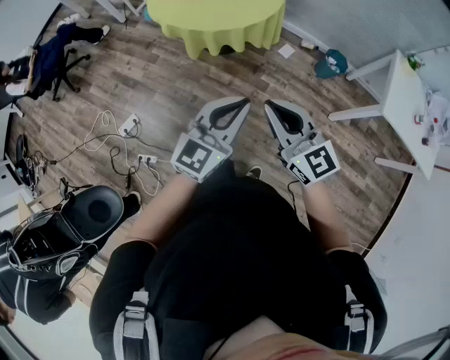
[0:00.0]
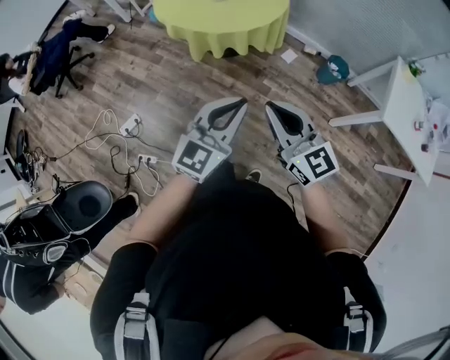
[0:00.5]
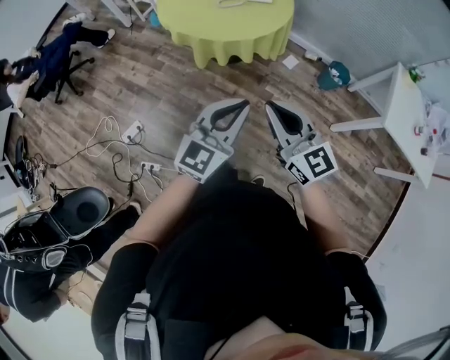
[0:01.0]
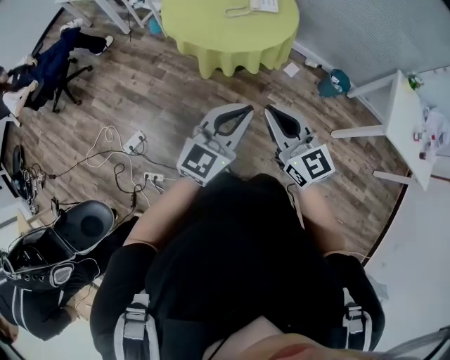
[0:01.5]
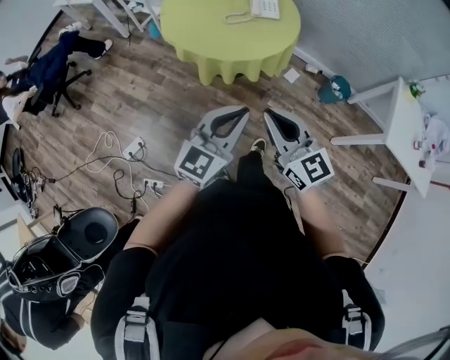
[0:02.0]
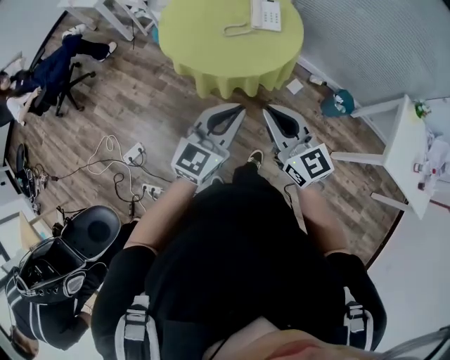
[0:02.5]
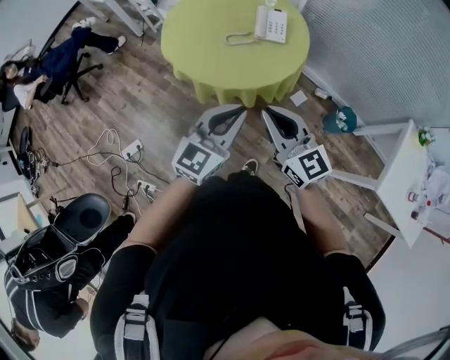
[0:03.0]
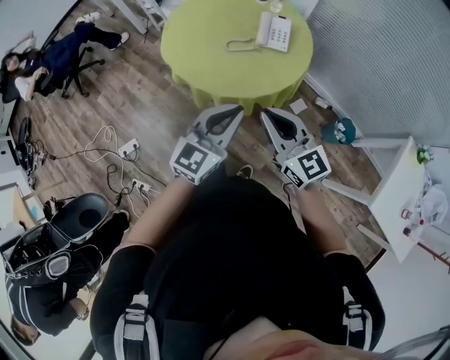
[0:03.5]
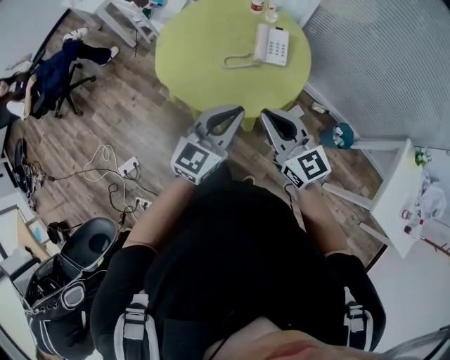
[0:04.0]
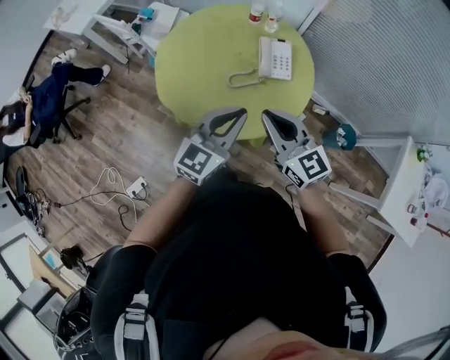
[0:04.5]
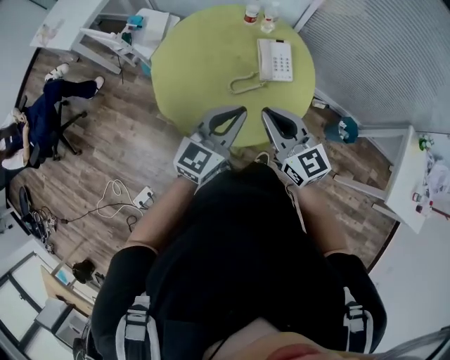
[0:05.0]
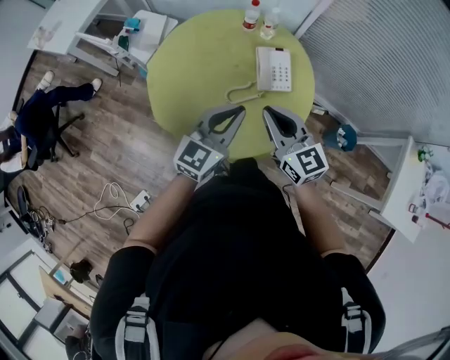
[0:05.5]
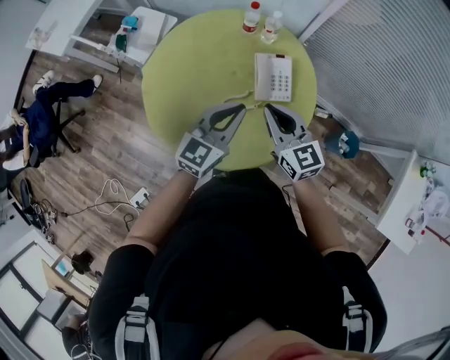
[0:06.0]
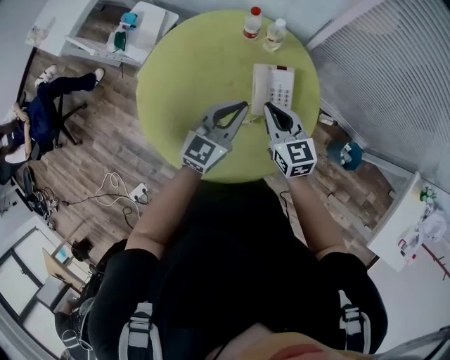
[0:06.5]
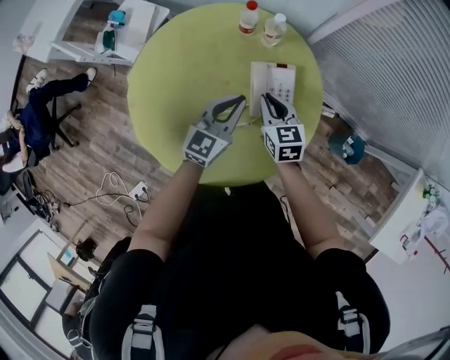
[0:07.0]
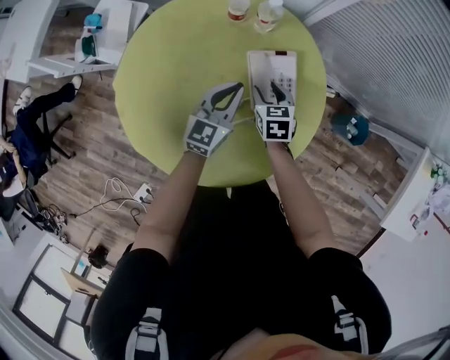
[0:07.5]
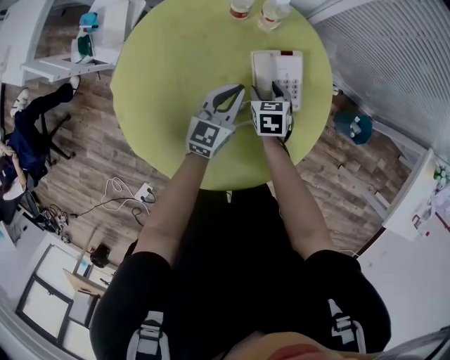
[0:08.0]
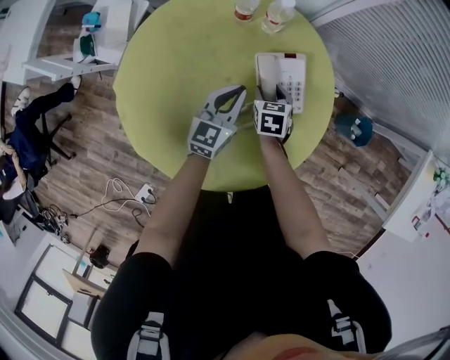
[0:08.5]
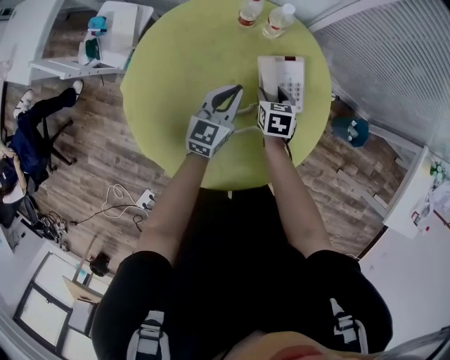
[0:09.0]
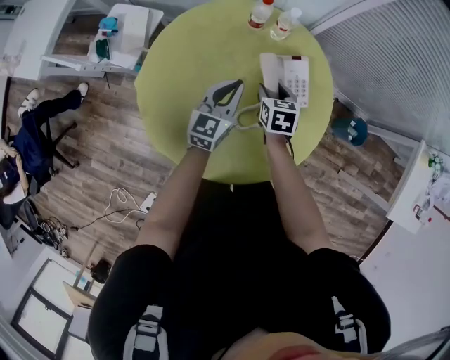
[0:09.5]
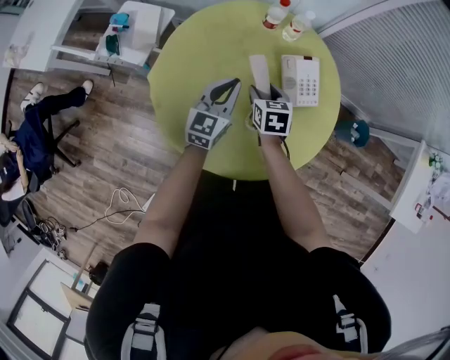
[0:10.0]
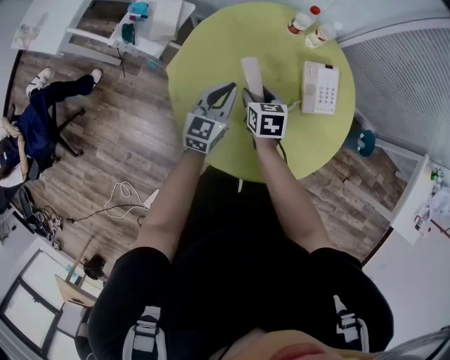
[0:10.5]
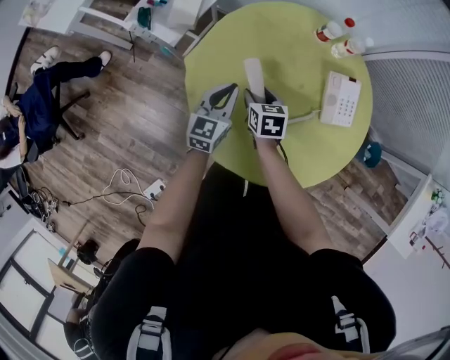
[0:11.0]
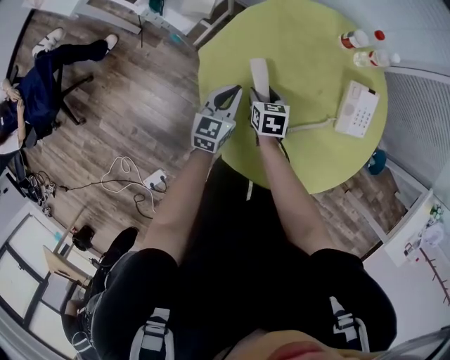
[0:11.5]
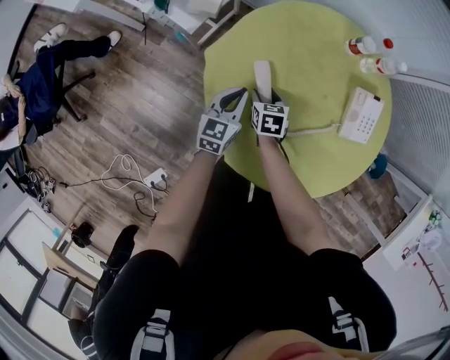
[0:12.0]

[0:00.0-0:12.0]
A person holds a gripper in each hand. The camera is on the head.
0:00.0 to 0:02.0: Both grippers move to the left and forward, about 15 cm.
0:02.0 to 0:04.0: Both grippers move forward, approximately 30 cm.
0:04.0 to 0:06.0: The two grippers go some 30 cm forward.
0:06.0 to 0:08.0: The two grippers go approximately 30 cm downward and forward. The right gripper tilts its fingers about 40 degrees downward, and opens its fingers.
0:08.0 to 0:10.0: The grippers both shift to the left, upward and backward by about 20 cm.
0:10.0 to 0:12.0: The grippers both shift to the left and downward by approximately 25 cm.

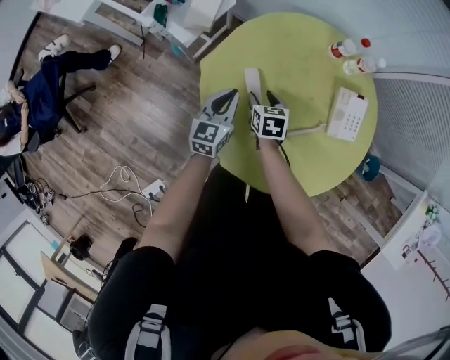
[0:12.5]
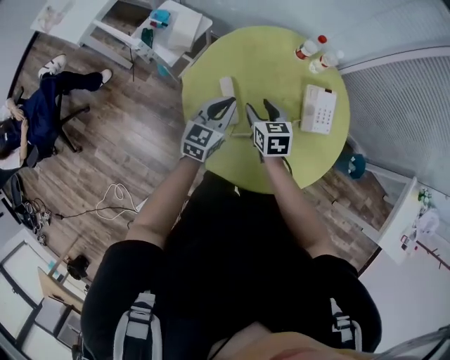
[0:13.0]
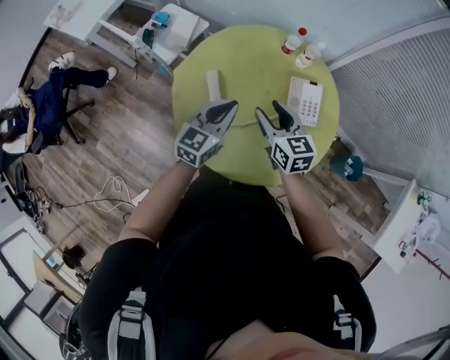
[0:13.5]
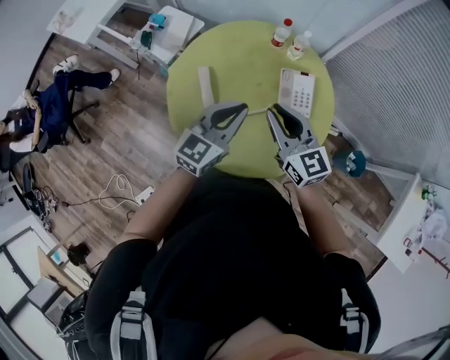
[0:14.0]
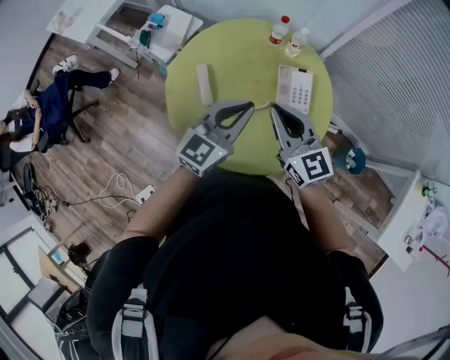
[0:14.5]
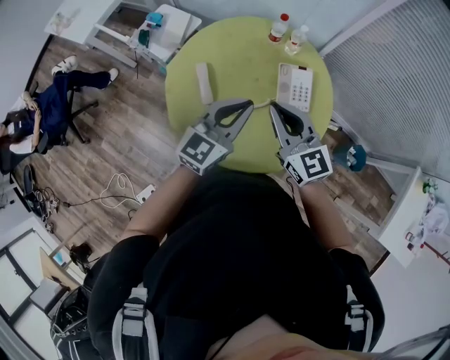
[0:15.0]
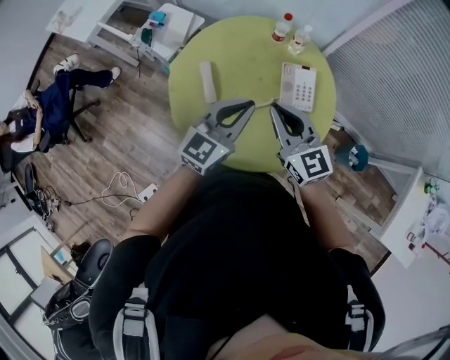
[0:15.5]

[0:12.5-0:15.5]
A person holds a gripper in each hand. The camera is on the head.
0:12.5 to 0:14.0: The right gripper is displaced upward and to the right by some 40 cm, points its fingers some 40 degrees further upward, and closes. Meanwhile the left gripper goes about 35 cm upward, to the right and backward, and turns by some 20 degrees.
0:14.0 to 0:15.5: The grippers stay close to where they were, moving slightly.

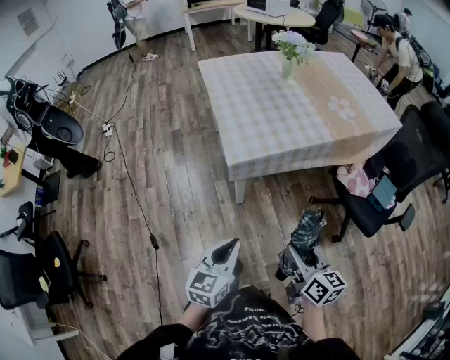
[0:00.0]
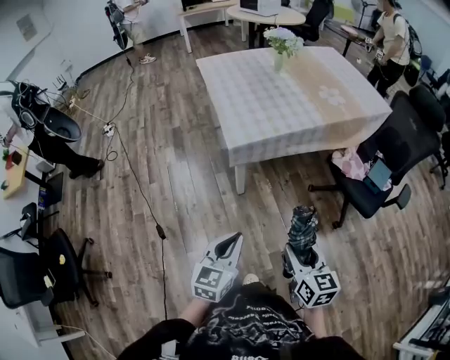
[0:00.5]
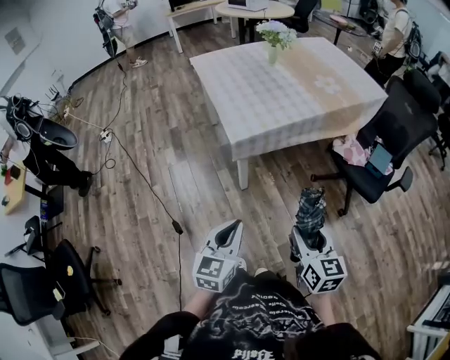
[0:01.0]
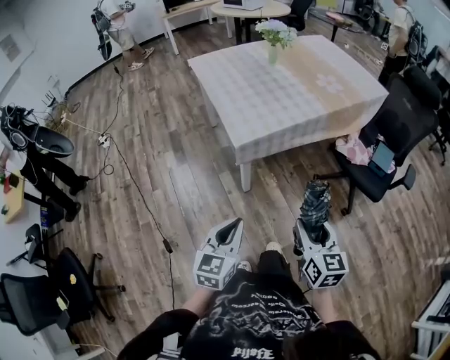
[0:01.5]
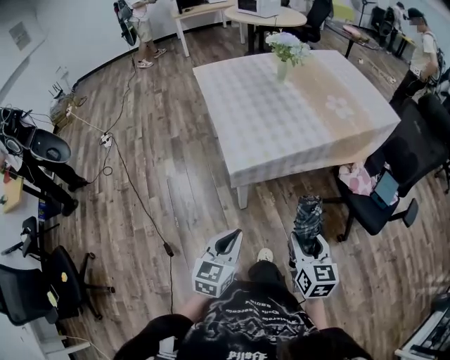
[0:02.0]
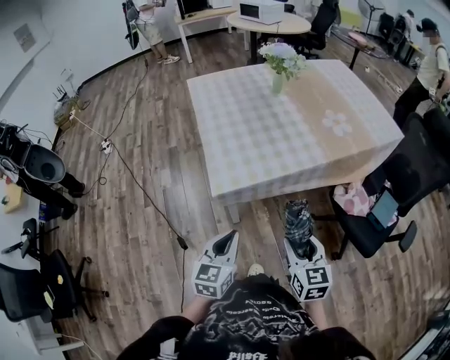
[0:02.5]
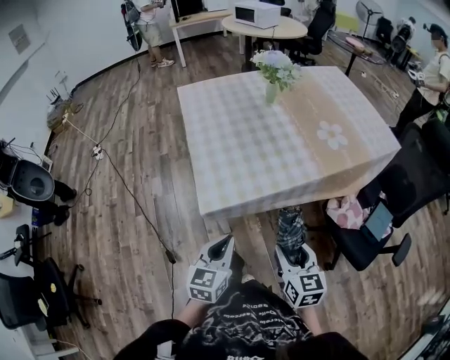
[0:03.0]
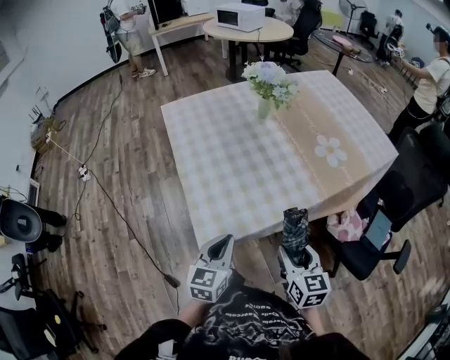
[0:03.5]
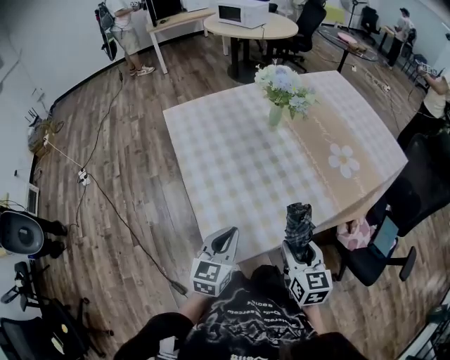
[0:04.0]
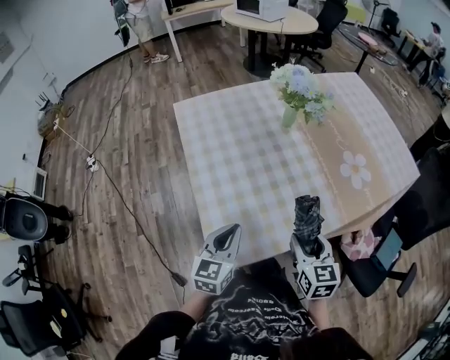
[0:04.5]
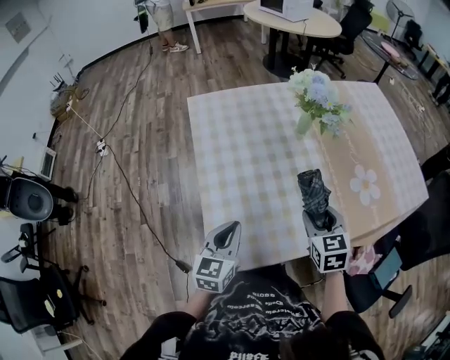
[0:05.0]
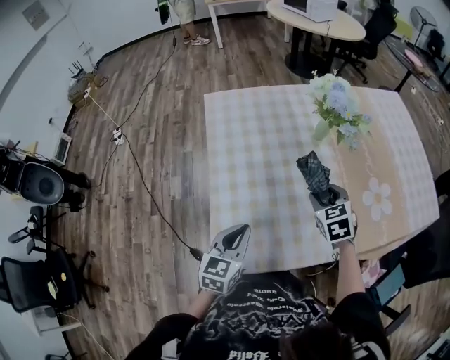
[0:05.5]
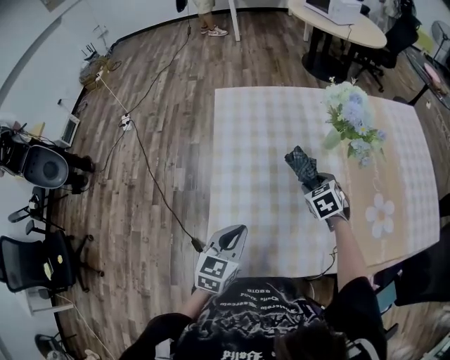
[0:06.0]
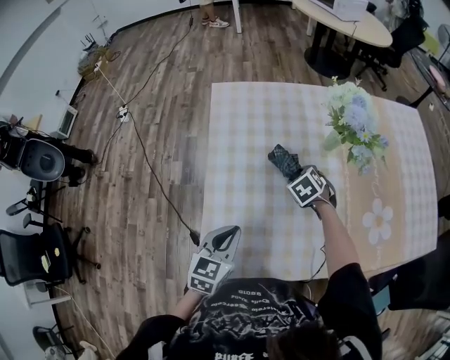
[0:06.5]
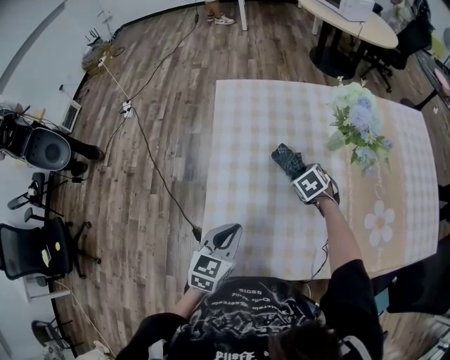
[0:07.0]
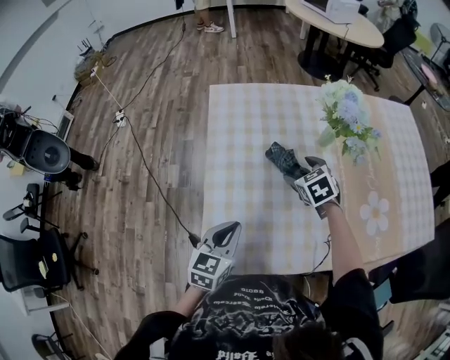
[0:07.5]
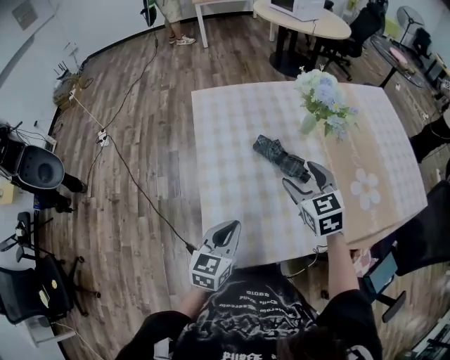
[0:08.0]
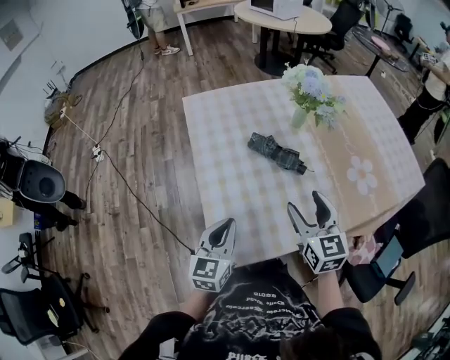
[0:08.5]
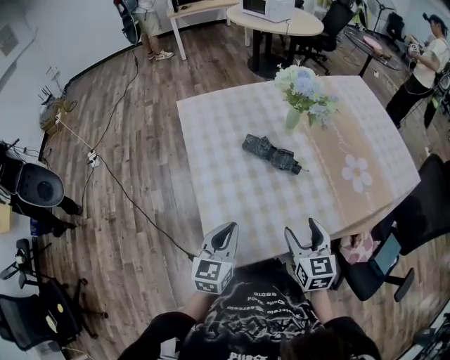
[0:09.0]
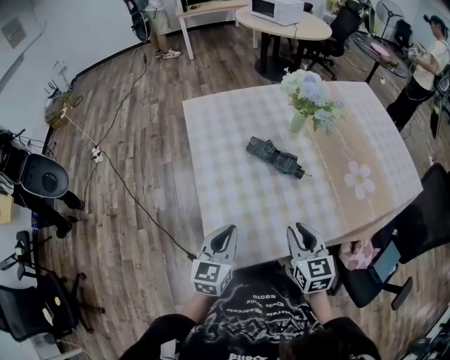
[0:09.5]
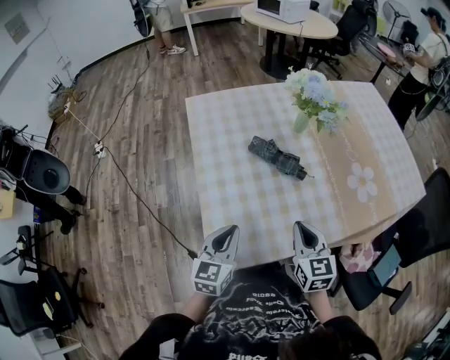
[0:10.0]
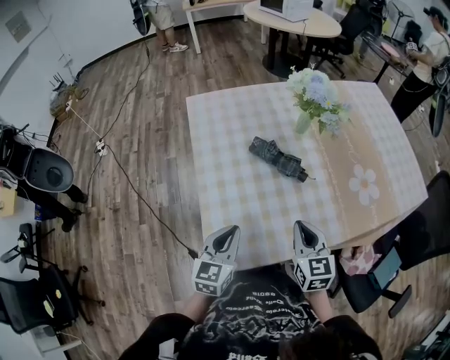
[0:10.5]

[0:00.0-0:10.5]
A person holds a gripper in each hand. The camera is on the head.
0:00.0 to 0:02.0: The two grippers go approximately 5 cm forward. The right gripper changes its angle by about 30 degrees.
0:02.0 to 0:04.0: The two grippers go about 30 cm forward.
0:04.0 to 0:06.5: The right gripper travels forward by about 40 cm, and angles its fingers downward, by about 40 degrees; the left gripper travels forward by roughly 15 cm, and changes its angle by about 20 degrees.
0:06.5 to 0:08.5: The left gripper is displaced backward and to the left by roughly 10 cm, while the right gripper shifts roughly 30 cm backward and upward, and tips its fingers upward by approximately 50 degrees.
0:08.5 to 0:10.5: The right gripper heads downward, covering about 5 cm, and closes its fingers.

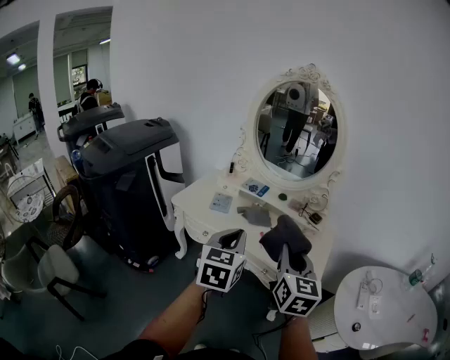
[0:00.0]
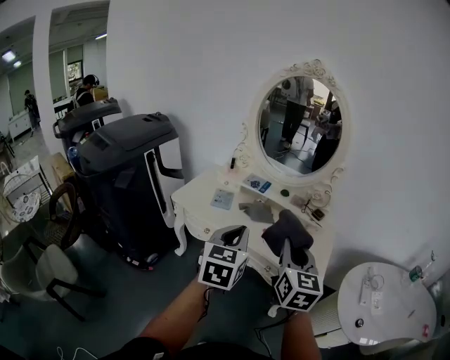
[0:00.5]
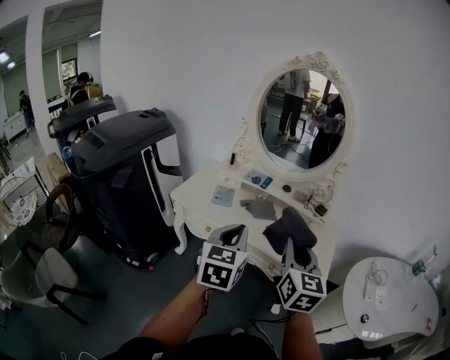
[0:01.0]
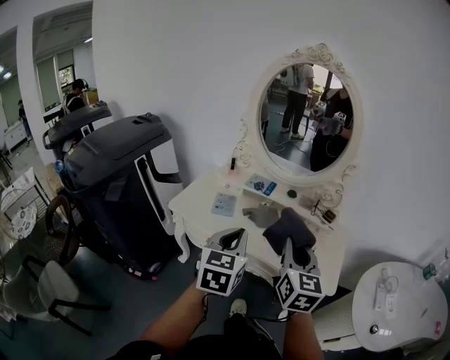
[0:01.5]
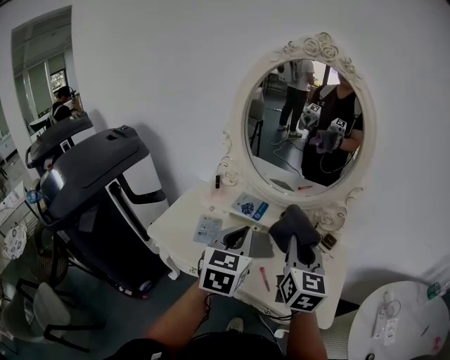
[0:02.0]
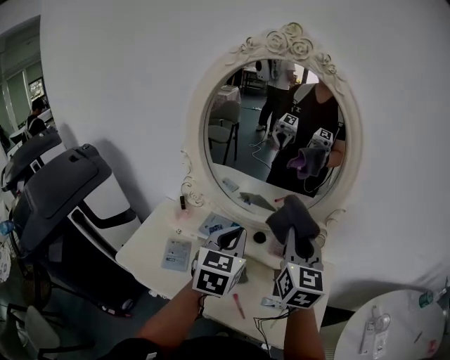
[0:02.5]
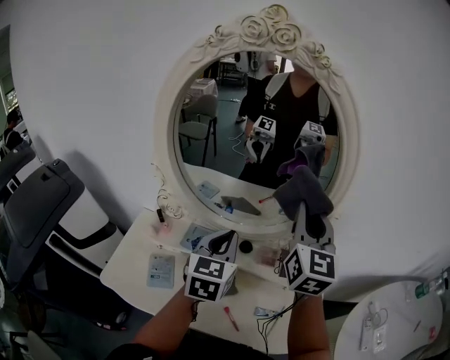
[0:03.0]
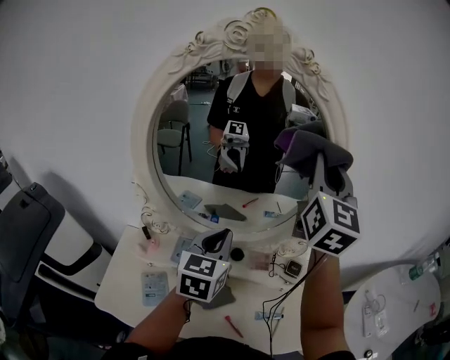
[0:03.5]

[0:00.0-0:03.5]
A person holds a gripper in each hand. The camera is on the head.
0:00.0 to 0:02.0: The two grippers go about 30 cm forward.
0:02.0 to 0:03.5: The left gripper shifts roughly 25 cm forward. The right gripper moves forward and upward, about 35 cm, and rotates approximately 30 degrees.
